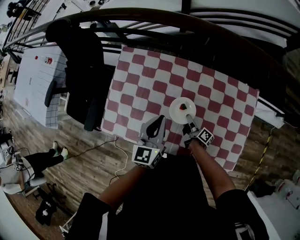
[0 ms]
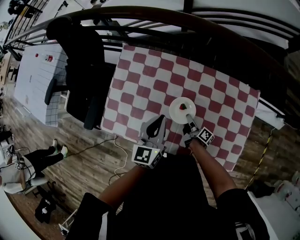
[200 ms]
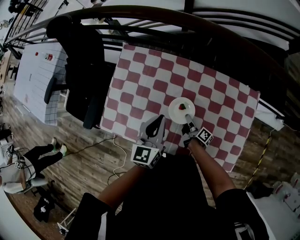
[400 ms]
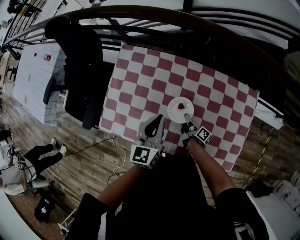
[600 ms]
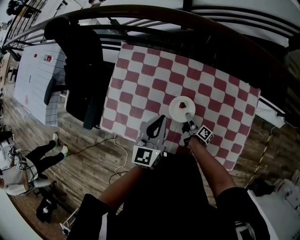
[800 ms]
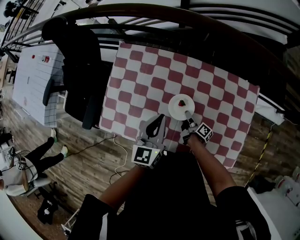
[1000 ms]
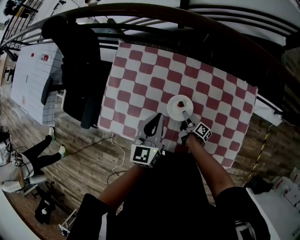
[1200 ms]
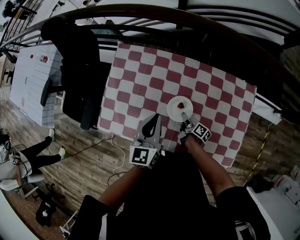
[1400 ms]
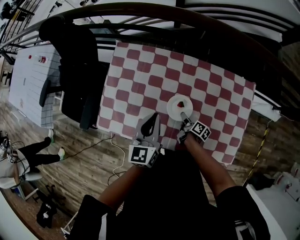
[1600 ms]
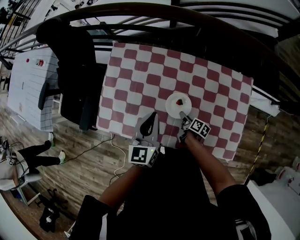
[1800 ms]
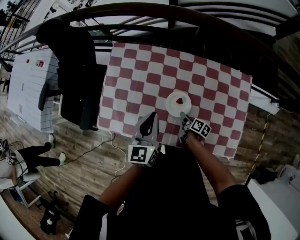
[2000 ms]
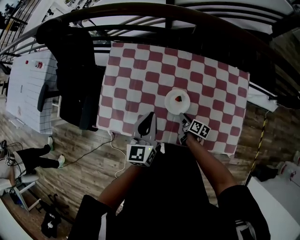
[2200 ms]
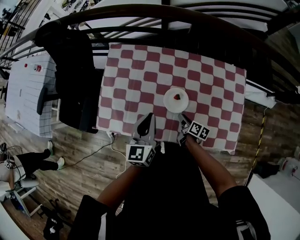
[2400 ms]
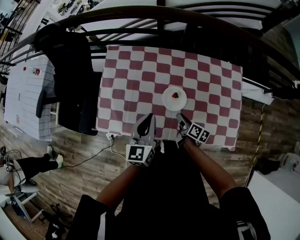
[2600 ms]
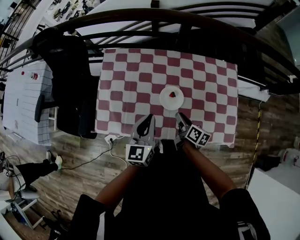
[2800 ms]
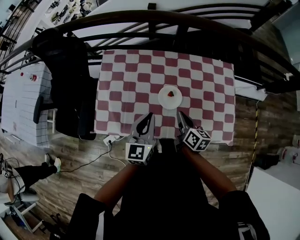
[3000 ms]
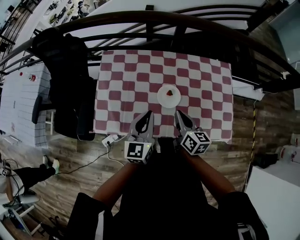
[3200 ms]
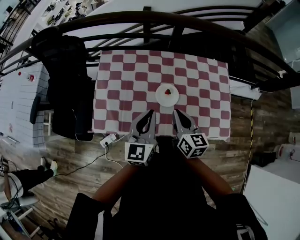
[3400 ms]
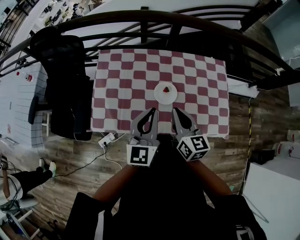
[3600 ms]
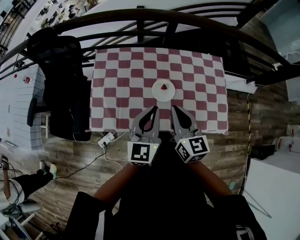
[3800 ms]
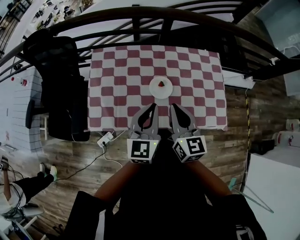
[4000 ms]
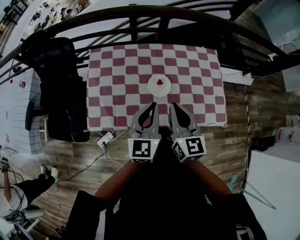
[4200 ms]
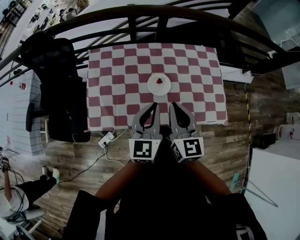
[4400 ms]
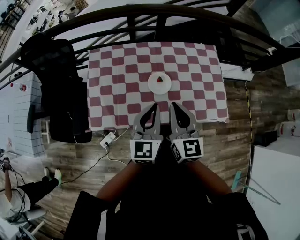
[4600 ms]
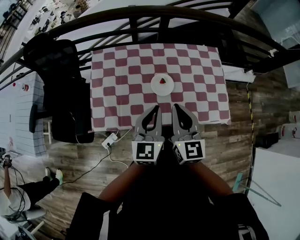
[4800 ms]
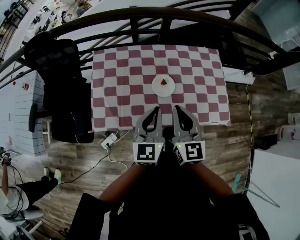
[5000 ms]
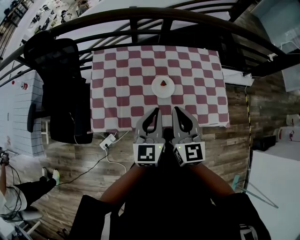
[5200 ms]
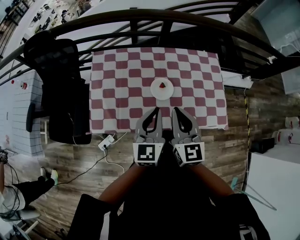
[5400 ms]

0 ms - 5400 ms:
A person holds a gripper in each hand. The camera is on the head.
0 ms - 1400 ms: The right gripper opens its fingers.
1400 ms - 2800 ms: The right gripper is displaced upward and backward by approximately 15 cm, and turns by some 20 degrees; the left gripper goes about 10 cm backward.
2800 ms - 4000 ms: The left gripper travels upward by roughly 10 cm. The right gripper moves upward, some 20 cm, rotates around the line of its fingers by roughly 40 degrees, counterclockwise from behind, and closes its fingers.
4000 ms - 5400 ms: There are only small adjustments of the grippers.

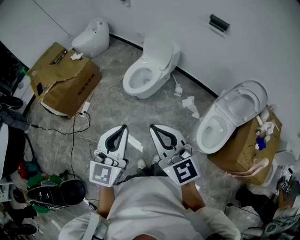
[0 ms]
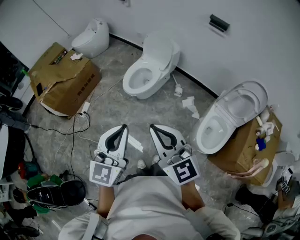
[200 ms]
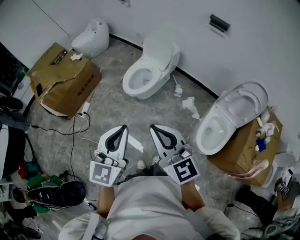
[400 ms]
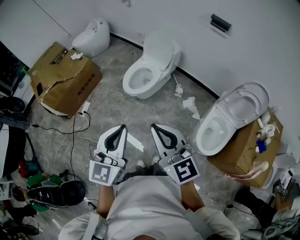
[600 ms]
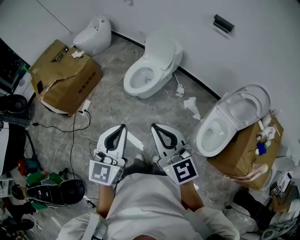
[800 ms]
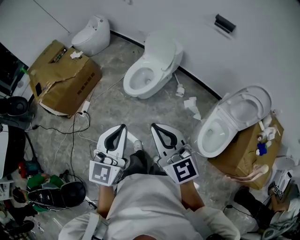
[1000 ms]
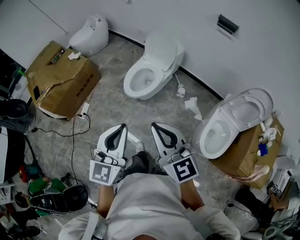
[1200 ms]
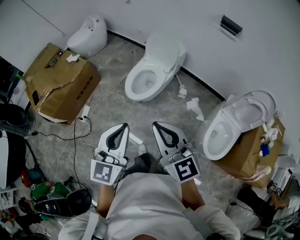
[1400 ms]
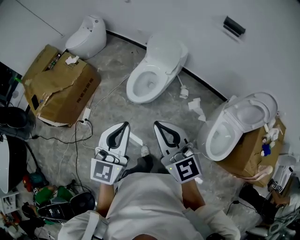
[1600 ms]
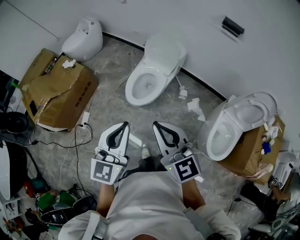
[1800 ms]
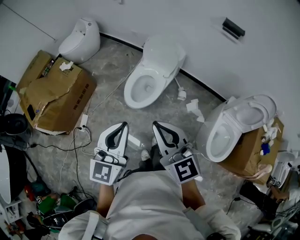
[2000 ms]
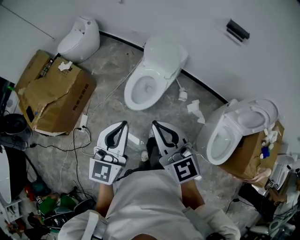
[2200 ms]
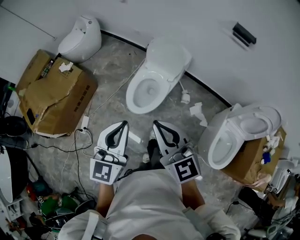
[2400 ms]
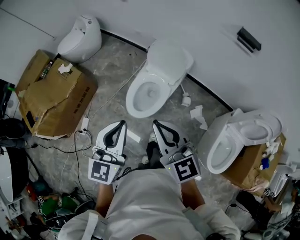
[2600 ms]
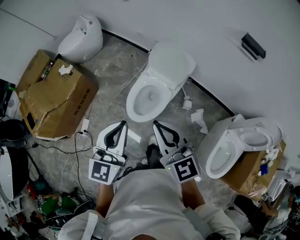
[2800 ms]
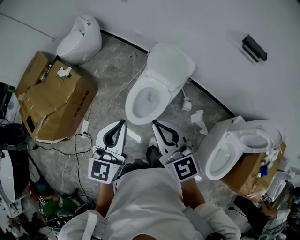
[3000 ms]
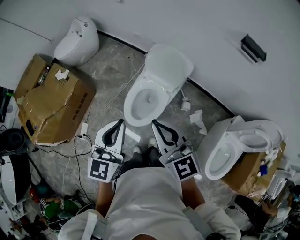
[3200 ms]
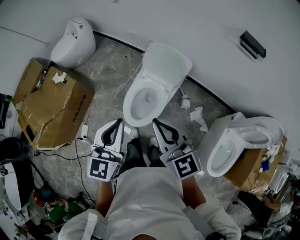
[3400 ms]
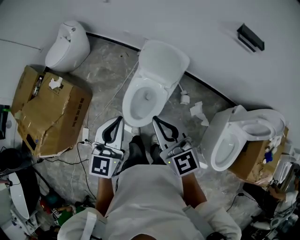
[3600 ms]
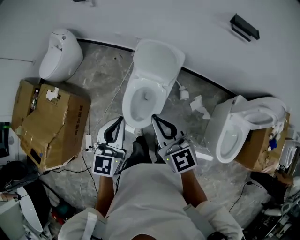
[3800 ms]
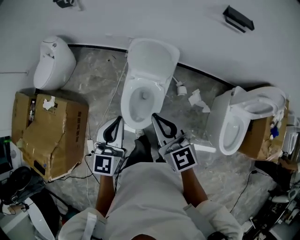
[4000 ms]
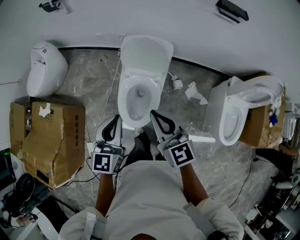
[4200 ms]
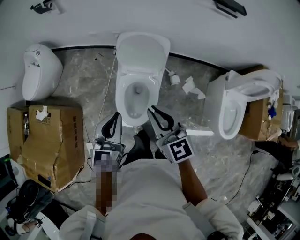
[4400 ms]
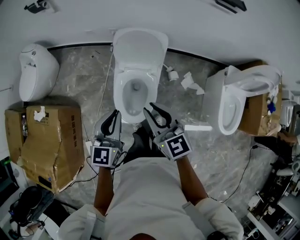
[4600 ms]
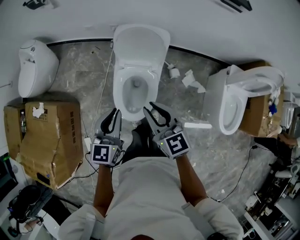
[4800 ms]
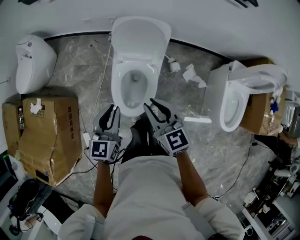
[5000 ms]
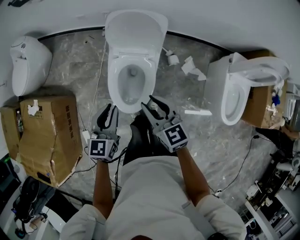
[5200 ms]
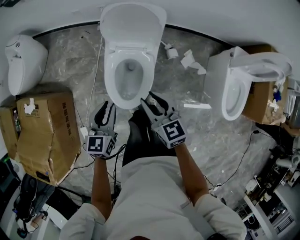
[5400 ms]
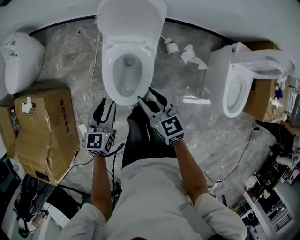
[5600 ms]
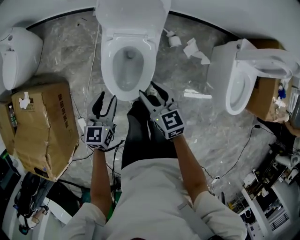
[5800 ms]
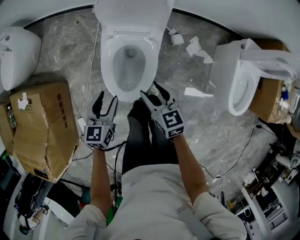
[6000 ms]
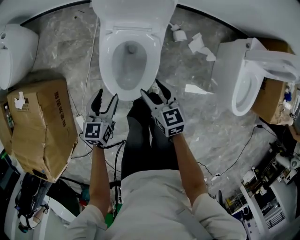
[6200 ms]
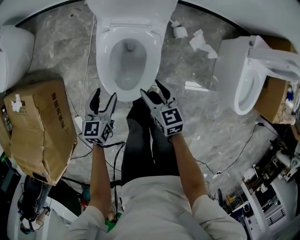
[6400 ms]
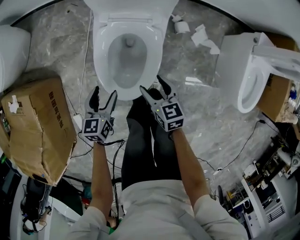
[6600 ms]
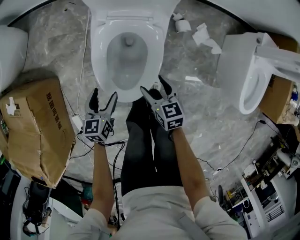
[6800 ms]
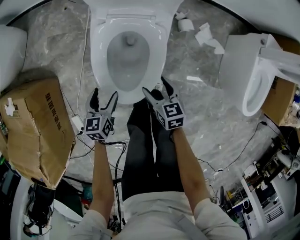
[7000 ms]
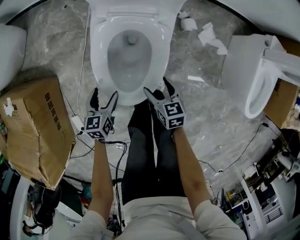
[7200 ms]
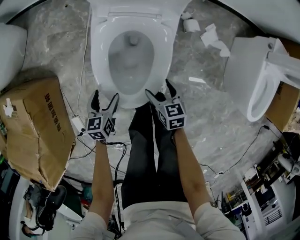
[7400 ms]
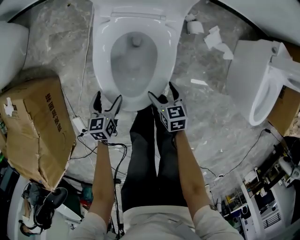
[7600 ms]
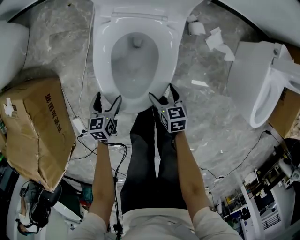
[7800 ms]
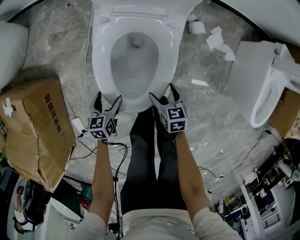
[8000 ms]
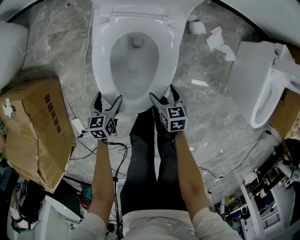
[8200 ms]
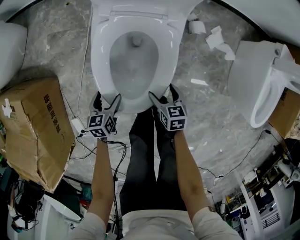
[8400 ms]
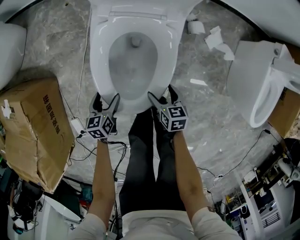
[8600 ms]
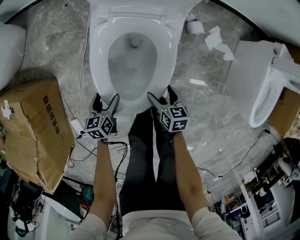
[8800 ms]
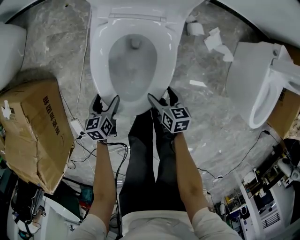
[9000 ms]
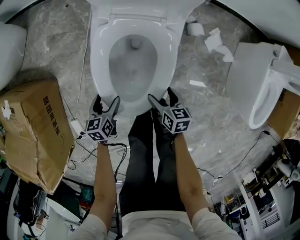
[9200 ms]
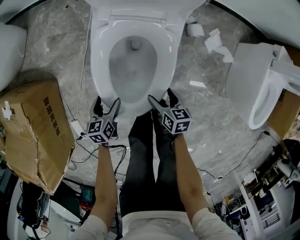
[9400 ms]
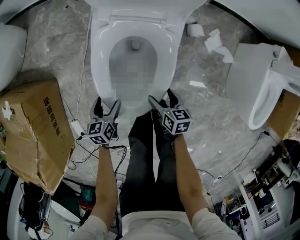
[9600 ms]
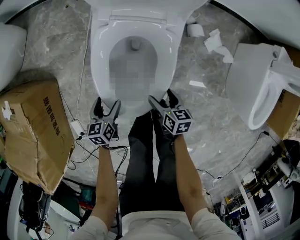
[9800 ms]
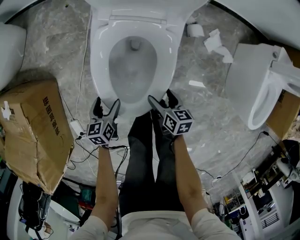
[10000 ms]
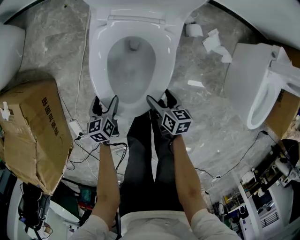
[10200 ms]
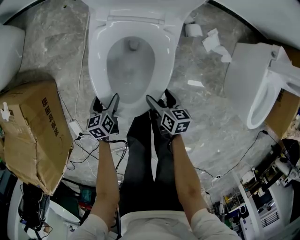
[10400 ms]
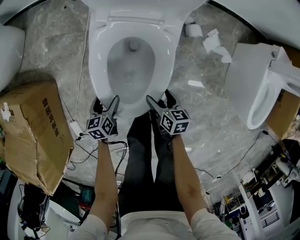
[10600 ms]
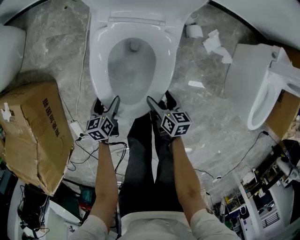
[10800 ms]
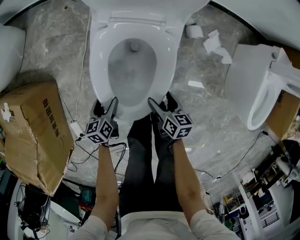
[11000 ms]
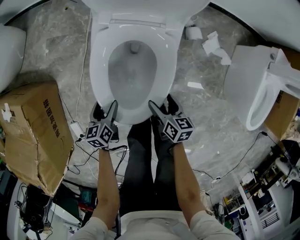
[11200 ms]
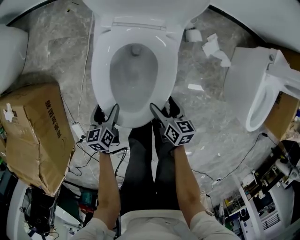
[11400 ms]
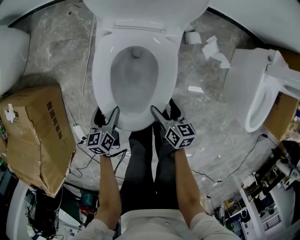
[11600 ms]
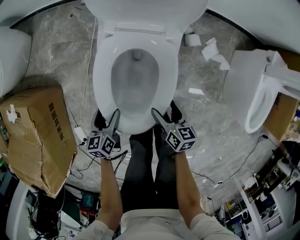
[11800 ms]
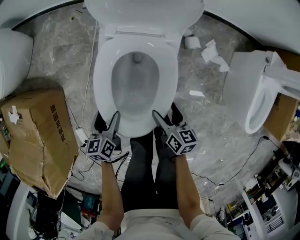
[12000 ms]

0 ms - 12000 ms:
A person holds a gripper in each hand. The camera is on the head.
0 ms - 1600 ms: The two grippers go some 20 cm forward.
1600 ms - 3000 ms: The two grippers go roughly 30 cm forward.
3000 ms - 4400 ms: Both grippers move forward and downward, roughly 20 cm. The right gripper swivels roughly 30 degrees. Meanwhile the left gripper swivels approximately 20 degrees.
4400 ms - 6000 ms: The two grippers go roughly 30 cm downward. The right gripper turns by approximately 20 degrees, and opens its fingers; the left gripper changes its angle by roughly 20 degrees, and opens up.
6000 ms - 7600 ms: The grippers both shift downward by about 30 cm. The right gripper opens. Meanwhile the left gripper opens its fingers.
7600 ms - 9000 ms: The grippers stay close to where they were, moving slightly.
9000 ms - 10400 ms: The grippers make only small movements.
10400 ms - 12000 ms: The grippers both shift upward by about 10 cm.

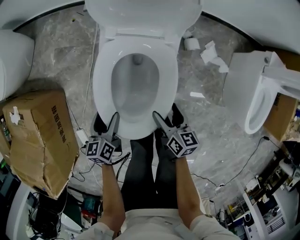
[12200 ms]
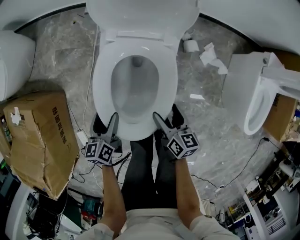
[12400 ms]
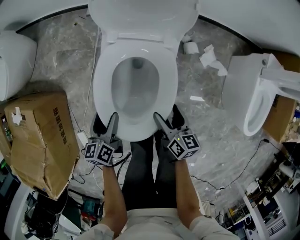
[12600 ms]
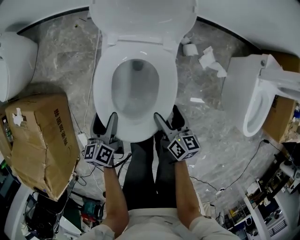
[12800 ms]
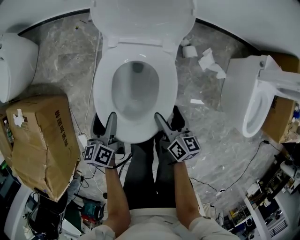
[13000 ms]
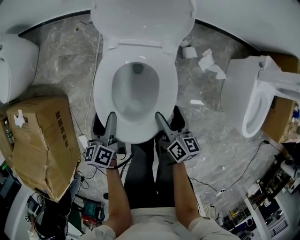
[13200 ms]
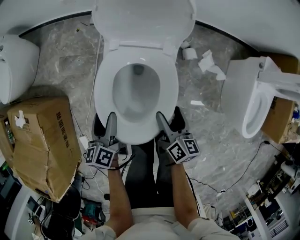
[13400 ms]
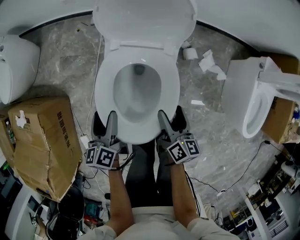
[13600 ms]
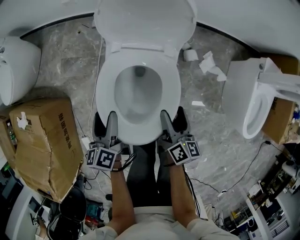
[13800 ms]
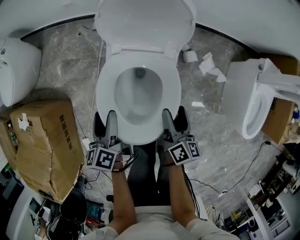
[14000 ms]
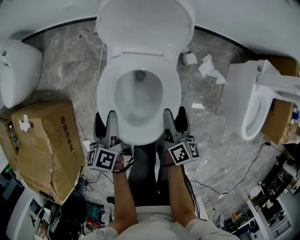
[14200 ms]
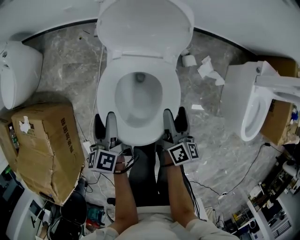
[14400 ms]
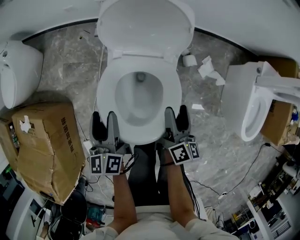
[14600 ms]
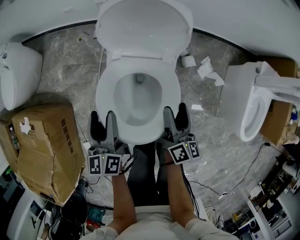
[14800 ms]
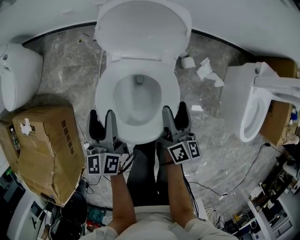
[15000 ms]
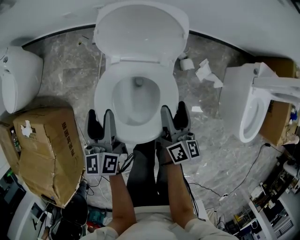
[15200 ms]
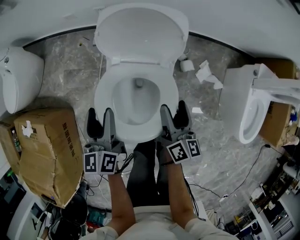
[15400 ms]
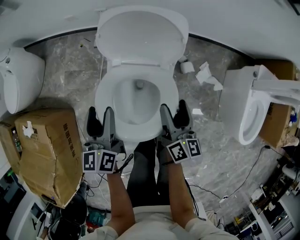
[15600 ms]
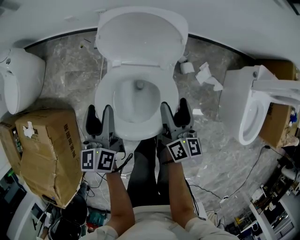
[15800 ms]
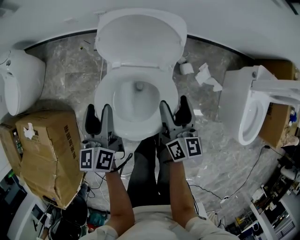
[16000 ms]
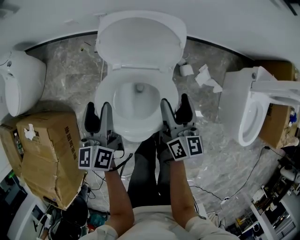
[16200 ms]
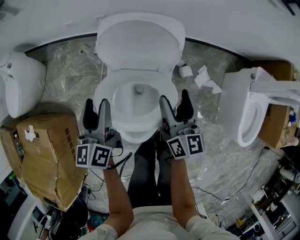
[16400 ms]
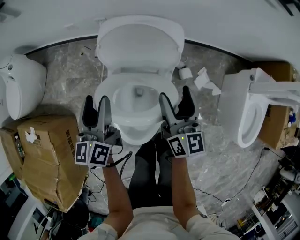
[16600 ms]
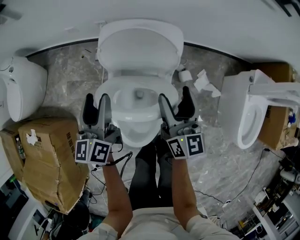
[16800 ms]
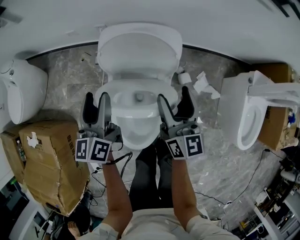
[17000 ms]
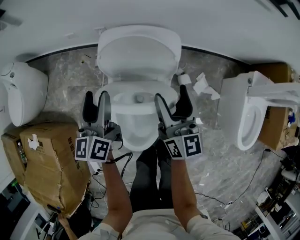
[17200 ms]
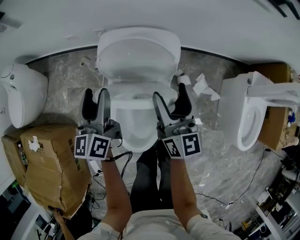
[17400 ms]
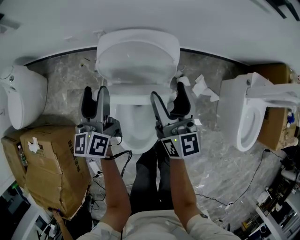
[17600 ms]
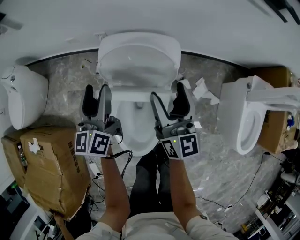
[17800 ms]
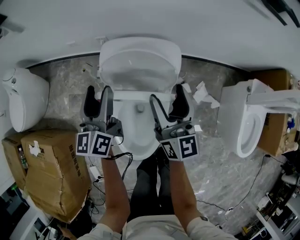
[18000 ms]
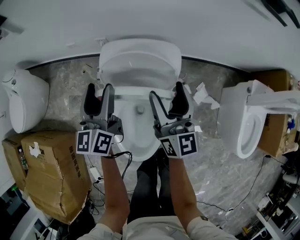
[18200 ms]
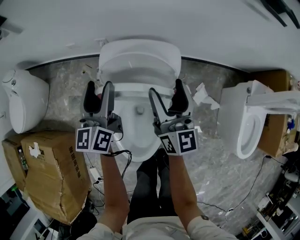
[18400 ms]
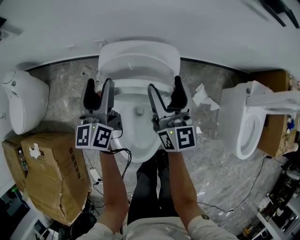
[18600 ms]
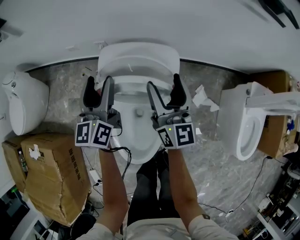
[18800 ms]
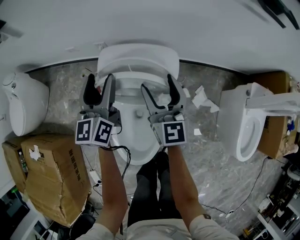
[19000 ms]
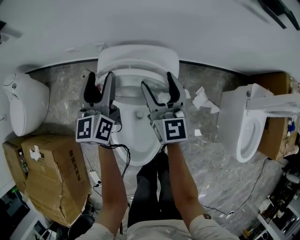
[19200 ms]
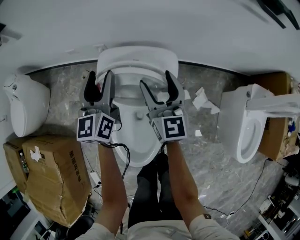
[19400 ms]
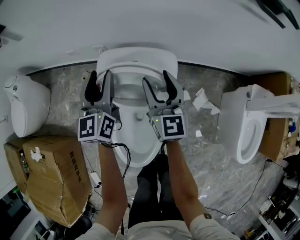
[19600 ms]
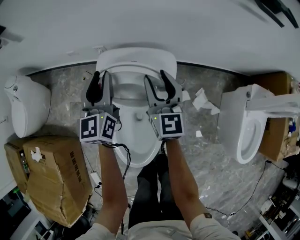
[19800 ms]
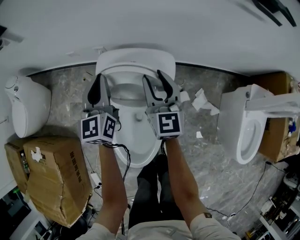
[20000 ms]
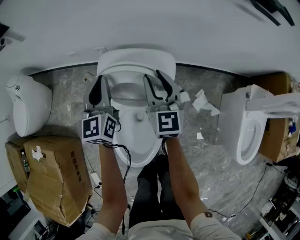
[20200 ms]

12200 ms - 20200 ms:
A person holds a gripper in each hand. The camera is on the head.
12200 ms - 13800 ms: Both grippers move upward and forward, about 15 cm. The left gripper swivels some 20 degrees. The right gripper swivels approximately 20 degrees.
13800 ms - 15400 ms: The left gripper is displaced upward and forward by approximately 10 cm, and swivels roughly 20 degrees, while the right gripper heads forward and upward, covering some 10 cm.
15400 ms - 17000 ms: The left gripper shifts approximately 10 cm forward and upward. The right gripper moves upward and forward, roughly 15 cm, and swivels approximately 20 degrees.
17000 ms - 18600 ms: Both grippers move forward, about 10 cm.
18600 ms - 20200 ms: The right gripper ends up approximately 5 cm from where it was, changes its angle by approximately 20 degrees, and closes up; the left gripper closes up.
